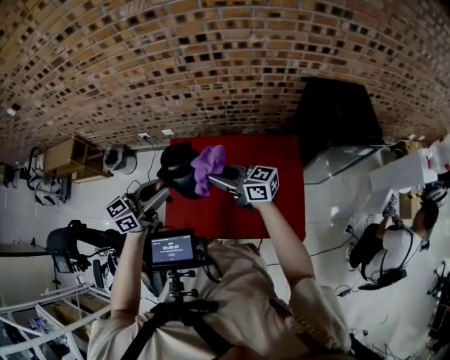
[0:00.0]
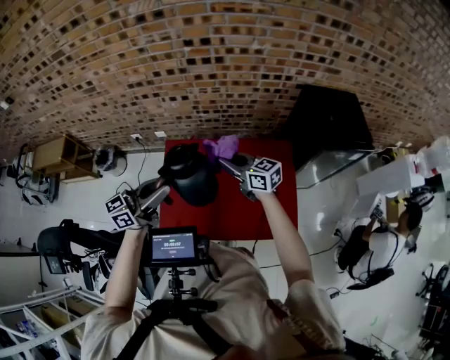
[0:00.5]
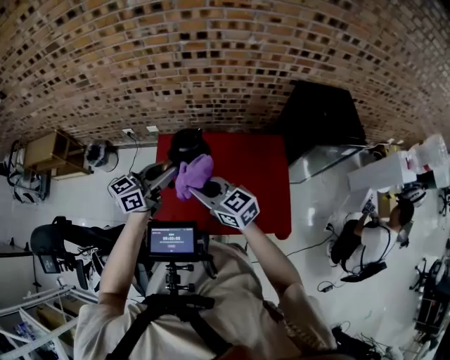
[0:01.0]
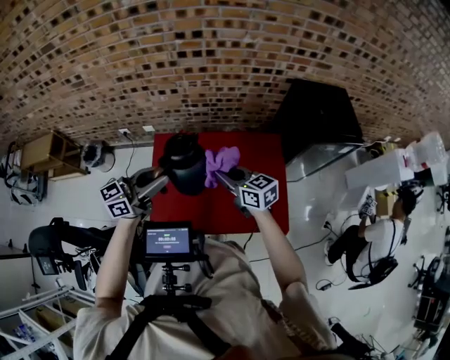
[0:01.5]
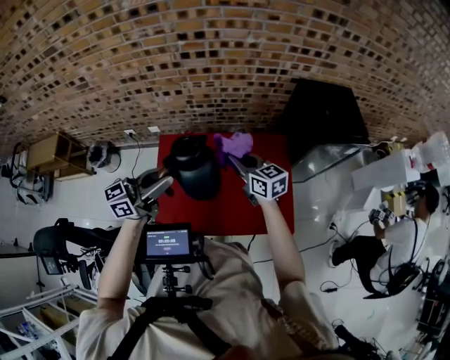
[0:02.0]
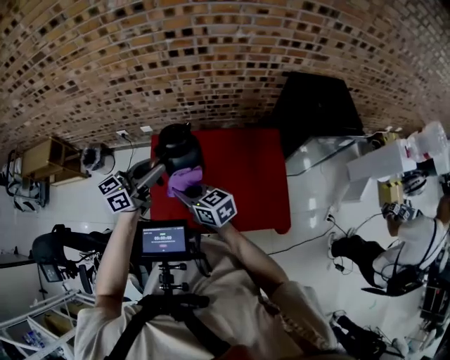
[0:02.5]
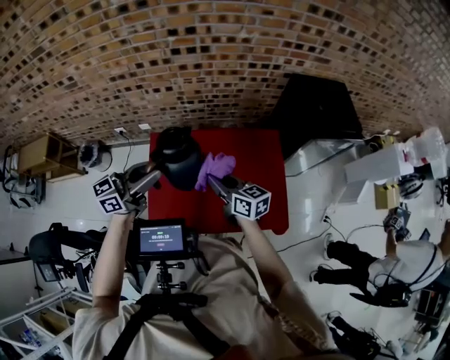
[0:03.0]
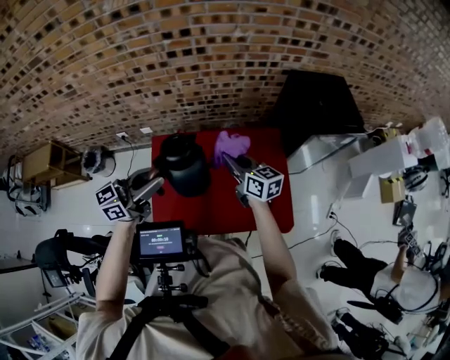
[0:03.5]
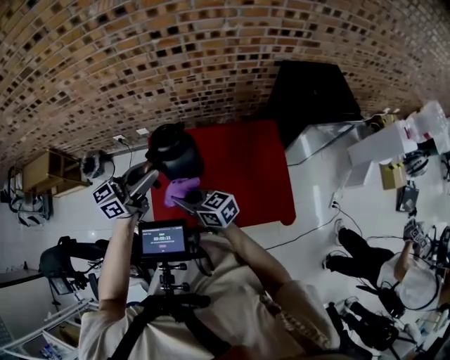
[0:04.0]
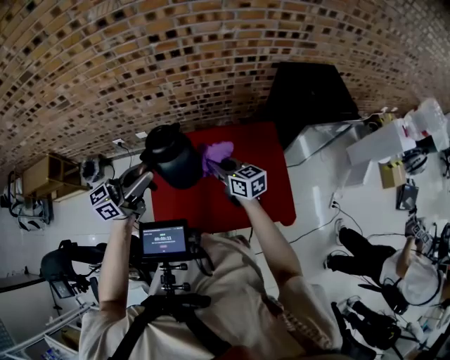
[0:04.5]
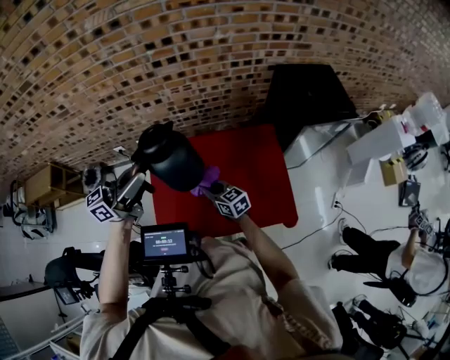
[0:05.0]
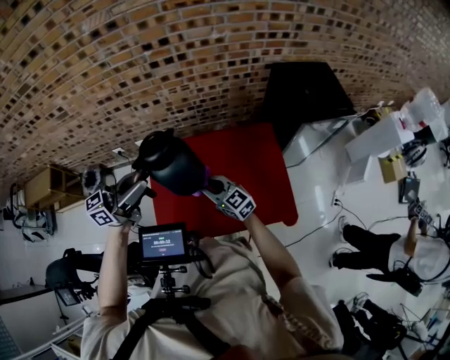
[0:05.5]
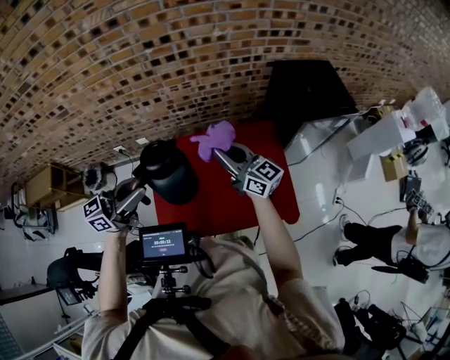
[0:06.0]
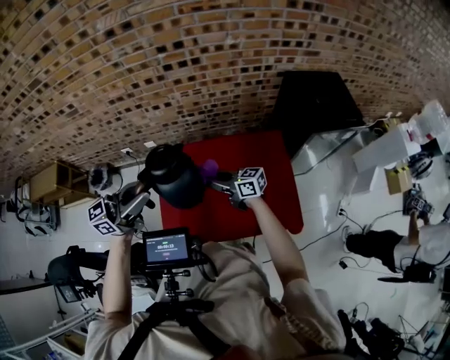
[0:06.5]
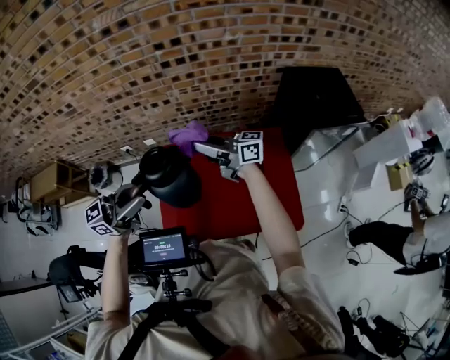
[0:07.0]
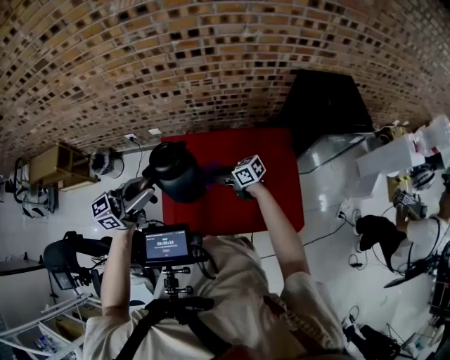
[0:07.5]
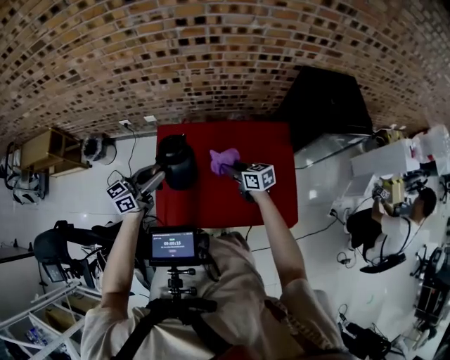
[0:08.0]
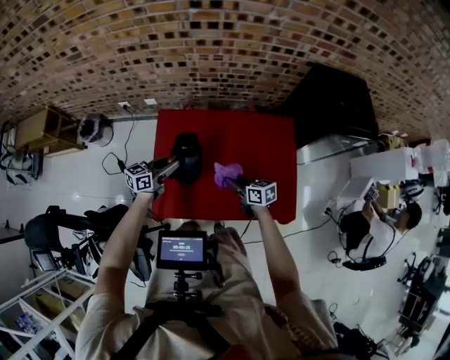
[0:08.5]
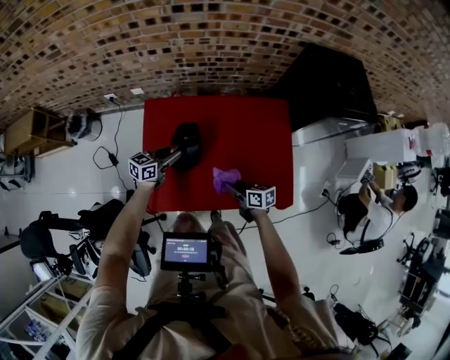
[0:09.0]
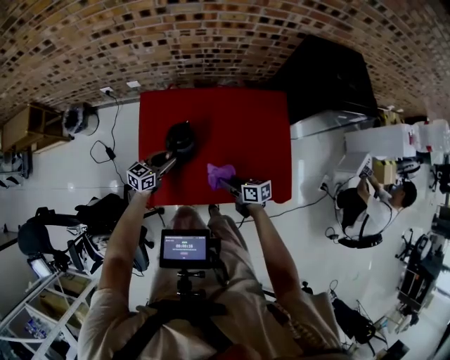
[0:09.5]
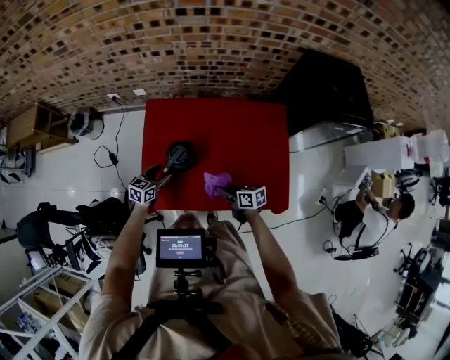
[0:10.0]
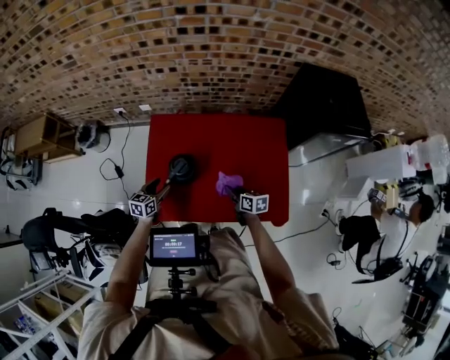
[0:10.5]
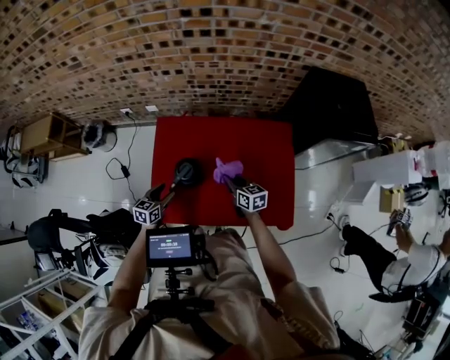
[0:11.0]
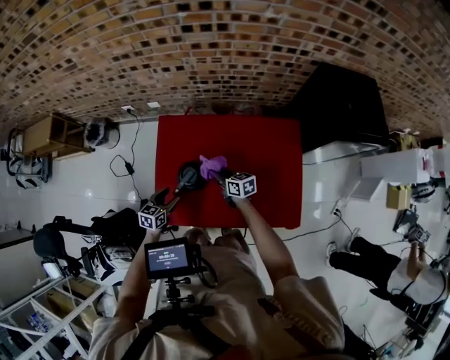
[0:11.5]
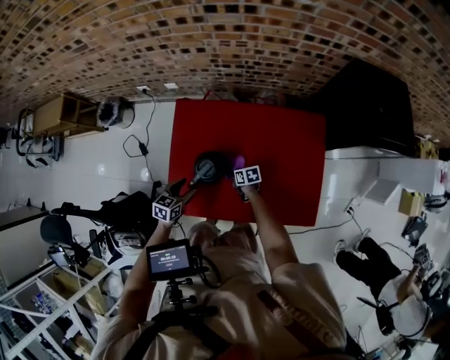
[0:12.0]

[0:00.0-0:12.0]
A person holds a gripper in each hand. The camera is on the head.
0:00.0 to 0:02.0: The right gripper is displaced to the right by approximately 10 cm, and turns by roughly 30 degrees.
0:02.0 to 0:04.0: The right gripper swings left and right, some 15 cm each way, with 2 reversals, and swivels about 20 degrees.
0:04.0 to 0:06.0: The right gripper is displaced to the right, forward and upward by approximately 20 cm, and swivels about 30 degrees; the left gripper ends up roughly 5 cm from where it was.
0:06.0 to 0:08.0: The right gripper swings up and down, approximately 25 cm each way, with 2 reversals, and points its fingers approximately 30 degrees further downward. Meanwhile the left gripper heads downward, covering approximately 15 cm.
0:08.0 to 0:10.0: The left gripper heads downward, covering about 30 cm, tilts its fingers some 30 degrees downward, and opens its fingers. Meanwhile the right gripper moves backward and downward, approximately 20 cm.
0:10.0 to 0:12.0: The right gripper heads downward and forward, covering some 25 cm, and turns by roughly 20 degrees.

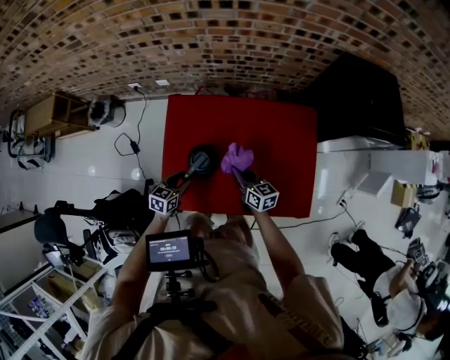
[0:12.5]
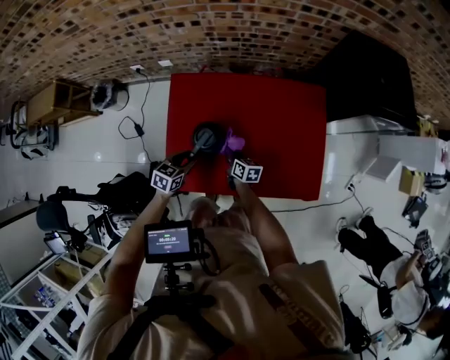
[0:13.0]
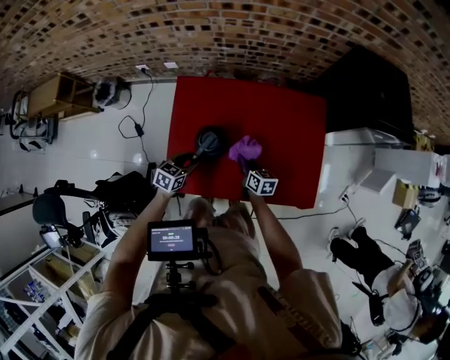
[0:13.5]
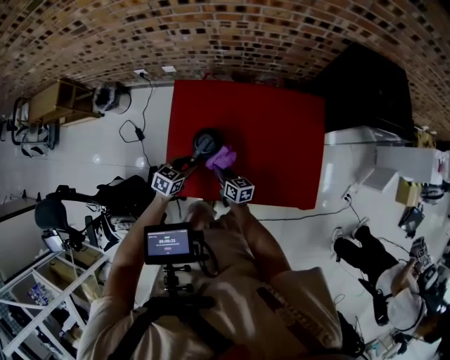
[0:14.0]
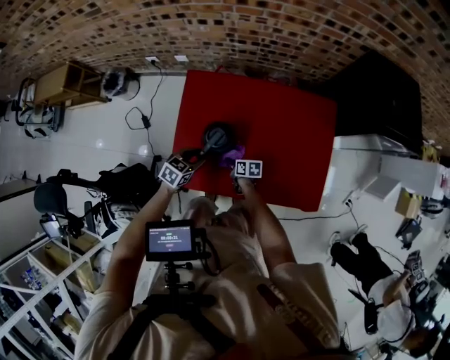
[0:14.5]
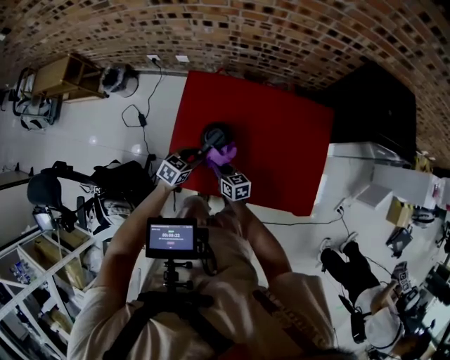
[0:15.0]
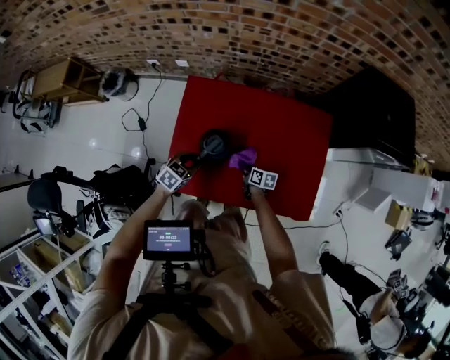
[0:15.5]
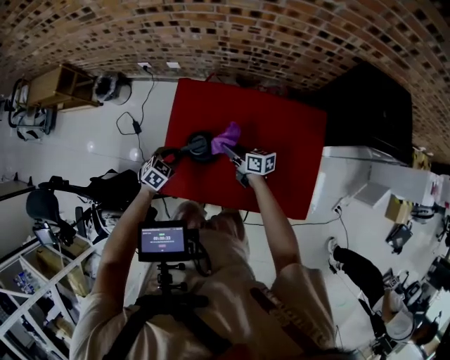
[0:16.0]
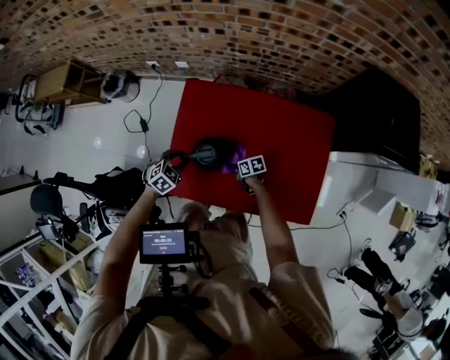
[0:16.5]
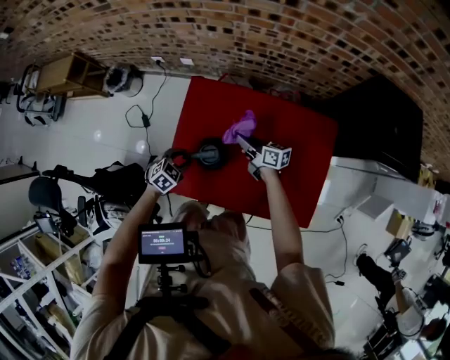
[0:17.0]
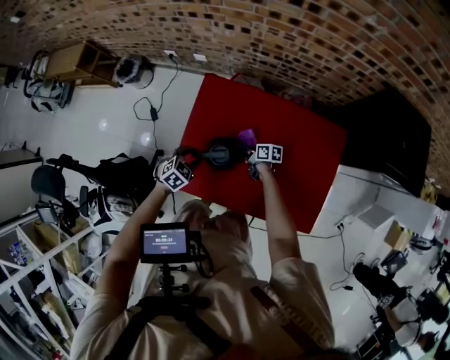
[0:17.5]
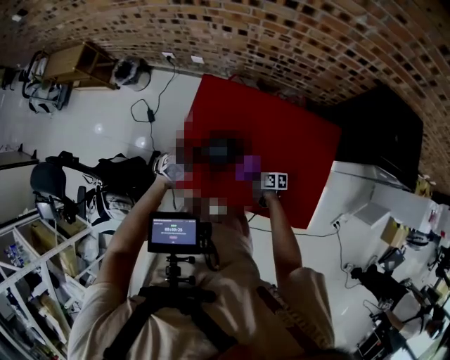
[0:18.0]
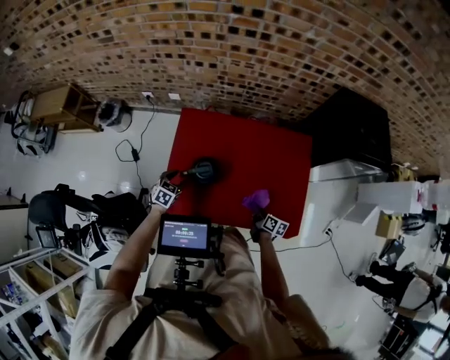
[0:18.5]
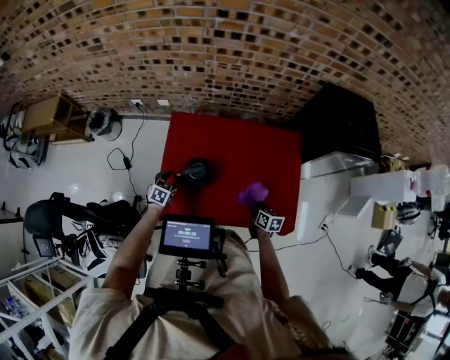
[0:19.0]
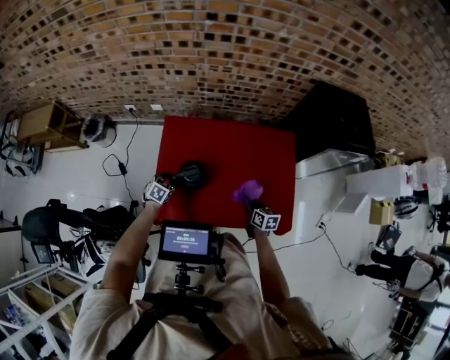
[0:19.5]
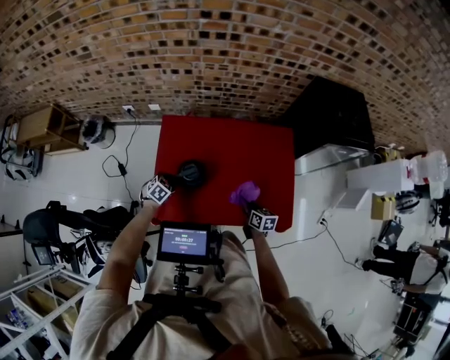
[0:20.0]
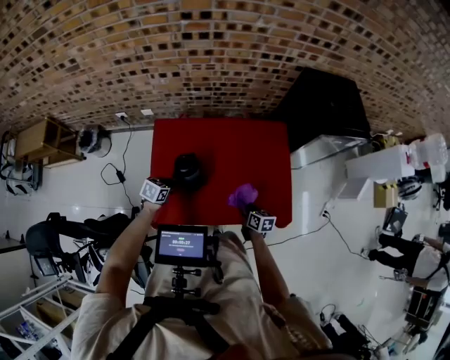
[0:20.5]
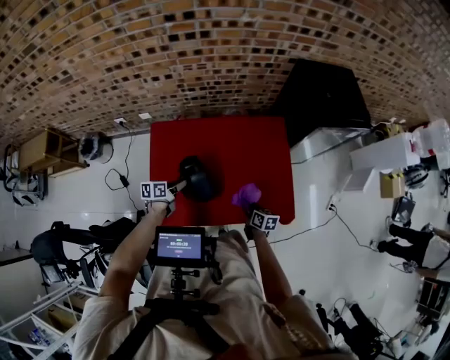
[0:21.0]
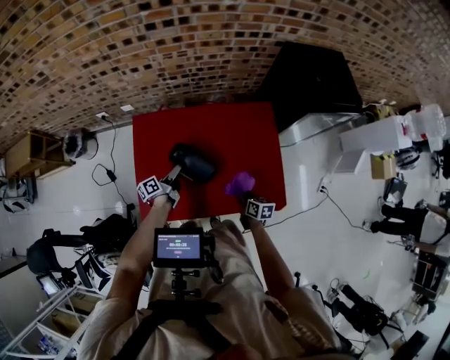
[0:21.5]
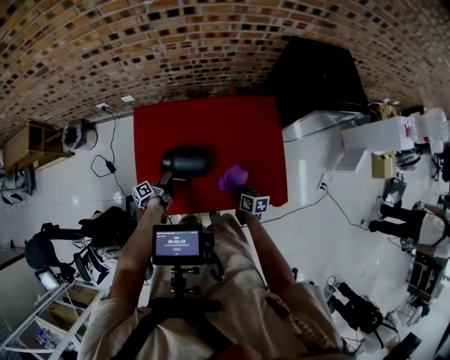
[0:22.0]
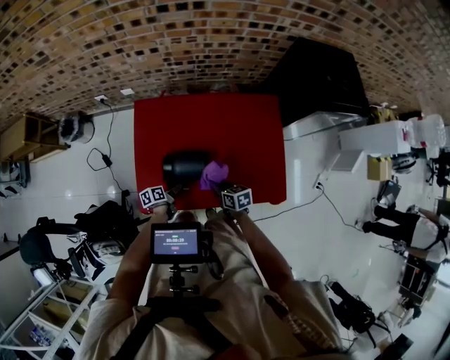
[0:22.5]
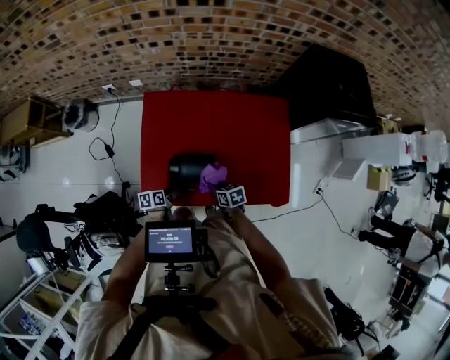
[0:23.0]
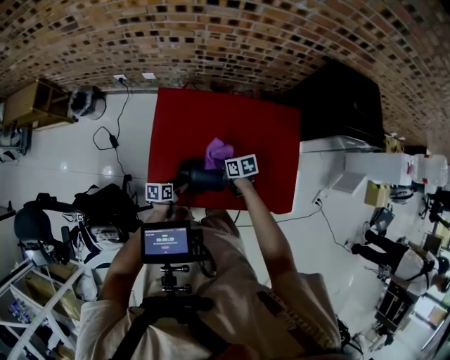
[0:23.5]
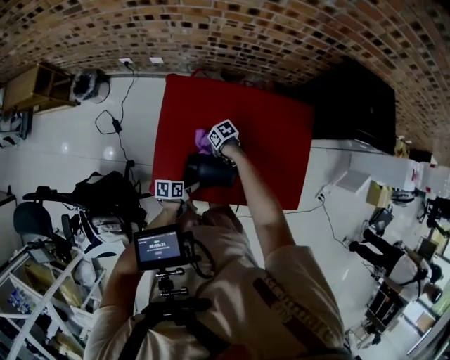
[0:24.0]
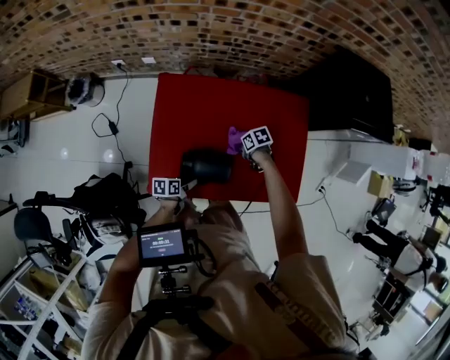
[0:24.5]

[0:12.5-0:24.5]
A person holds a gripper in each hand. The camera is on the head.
0:12.5 to 0:14.5: The right gripper goes up and down, approximately 20 cm each way, reversing 2 times, and turns by about 40 degrees.
0:14.5 to 0:16.5: The left gripper moves approximately 5 cm, and turns by approximately 30 degrees; the right gripper moves up and down over roughly 15 cm, changing direction 3 times, and rotates roughly 20 degrees.
0:16.5 to 0:18.5: The right gripper moves up and down over some 15 cm, changing direction 2 times, and changes its angle by roughly 50 degrees. The left gripper changes its angle by about 20 degrees, and opens its fingers.
0:18.5 to 0:20.5: The left gripper goes some 5 cm to the right, and closes its fingers.
0:20.5 to 0:22.5: The left gripper is displaced downward and backward by about 15 cm, rotates around the line of its fingers by about 60 degrees, counterclockwise from behind, and opens up. Meanwhile the right gripper moves to the left, approximately 10 cm.
0:22.5 to 0:24.5: The right gripper ends up about 15 cm from where it was, and rotates some 40 degrees.

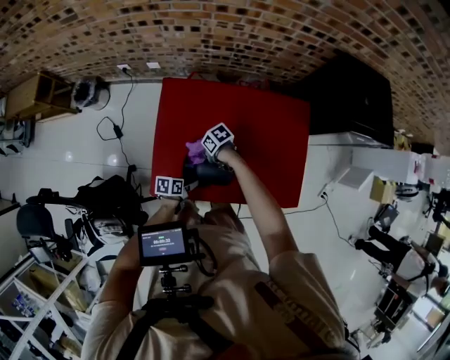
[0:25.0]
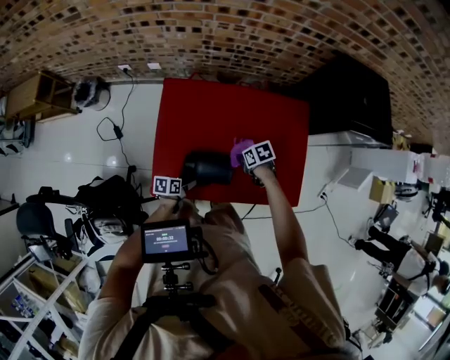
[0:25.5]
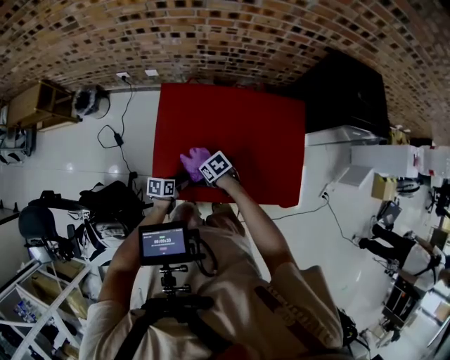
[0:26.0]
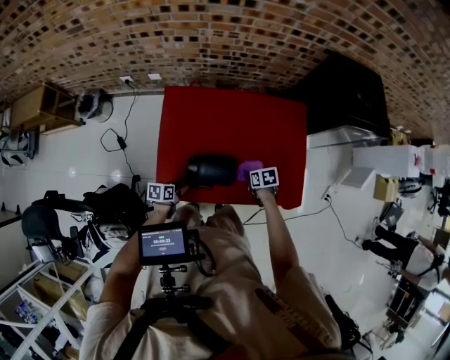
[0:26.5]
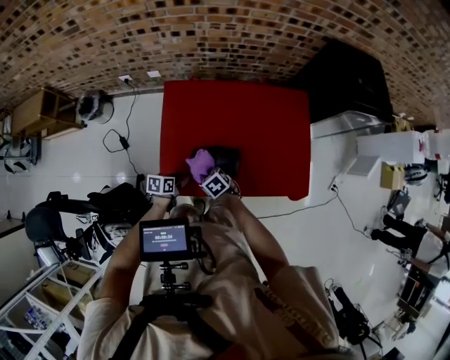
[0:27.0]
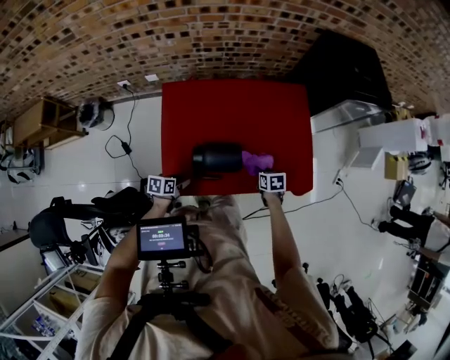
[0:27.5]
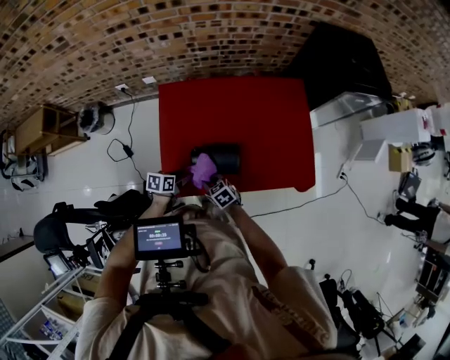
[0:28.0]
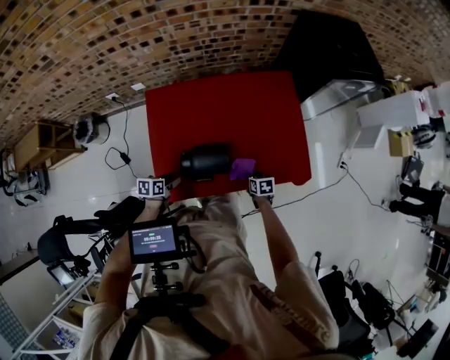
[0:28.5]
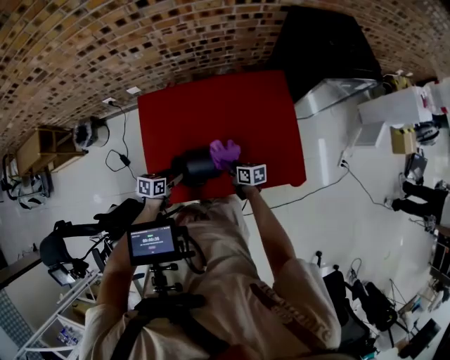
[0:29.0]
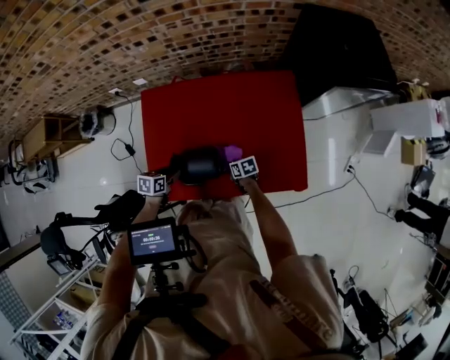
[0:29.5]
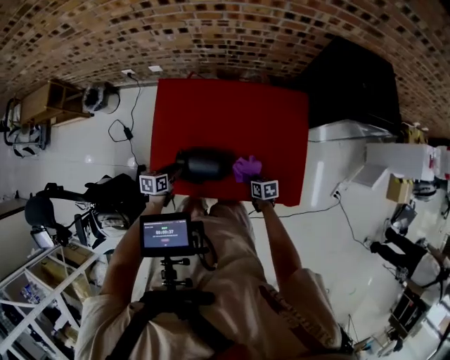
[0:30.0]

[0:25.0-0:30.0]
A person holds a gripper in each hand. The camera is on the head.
0:25.0 to 0:27.5: The right gripper moves some 25 cm, and swivels roughly 50 degrees; the left gripper shifts by about 10 cm.
0:27.5 to 0:30.0: The right gripper moves up and down over roughly 10 cm, changing direction 3 times. Meanwhile the left gripper moves roughly 5 cm.
